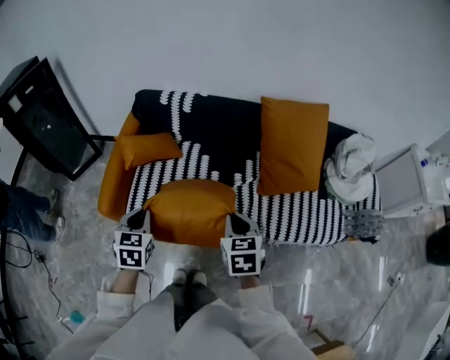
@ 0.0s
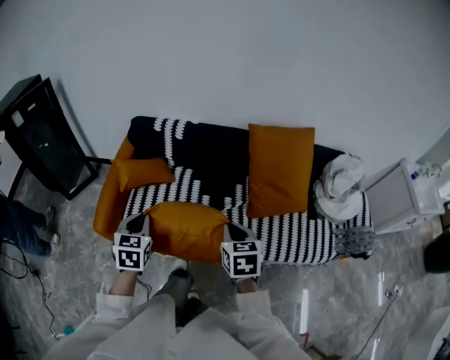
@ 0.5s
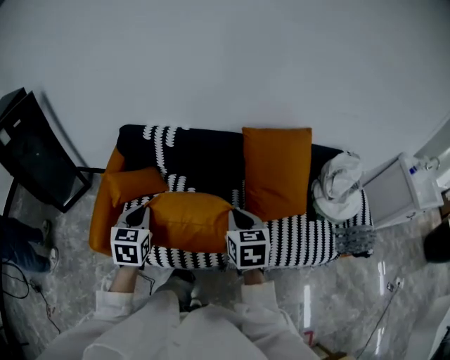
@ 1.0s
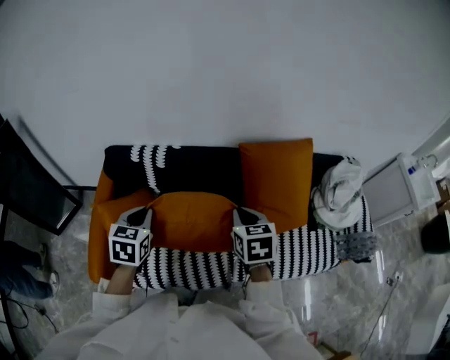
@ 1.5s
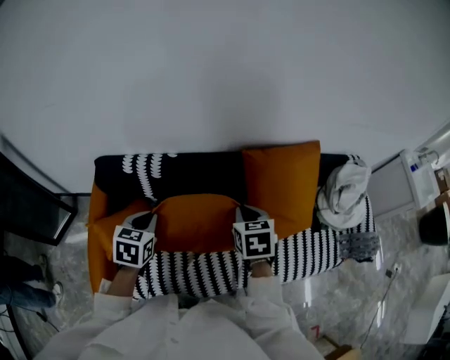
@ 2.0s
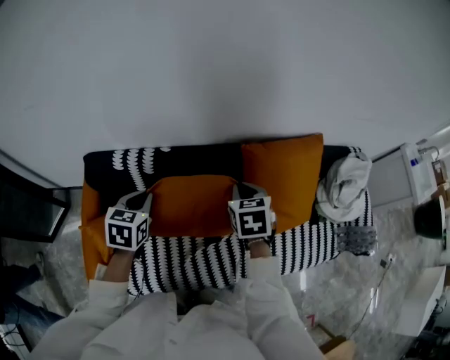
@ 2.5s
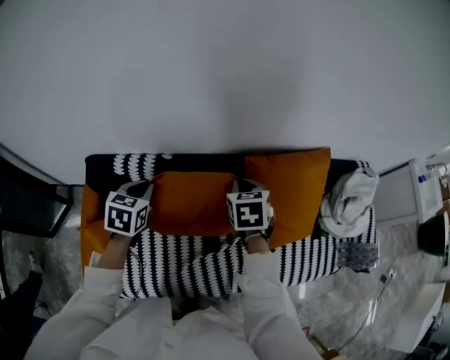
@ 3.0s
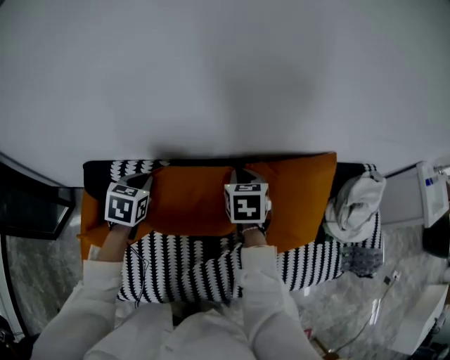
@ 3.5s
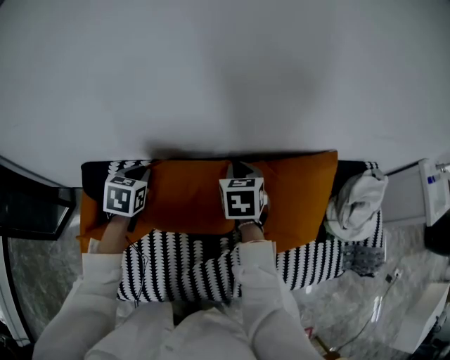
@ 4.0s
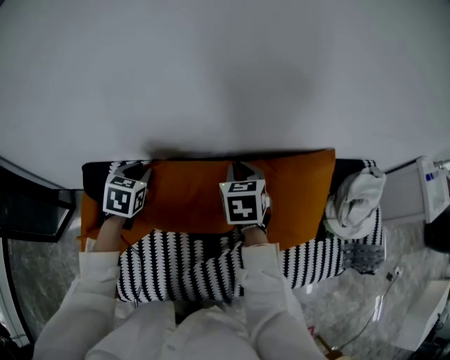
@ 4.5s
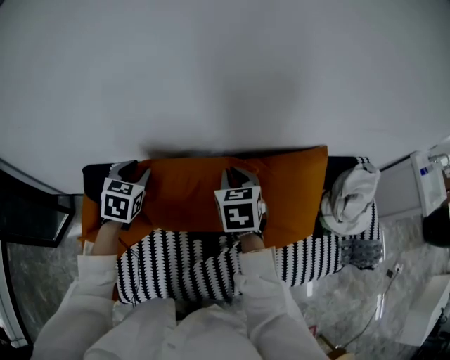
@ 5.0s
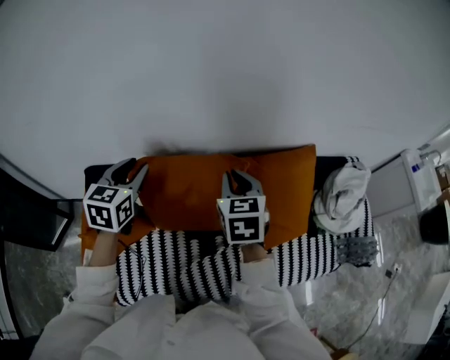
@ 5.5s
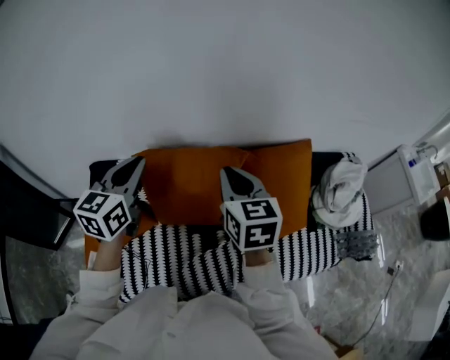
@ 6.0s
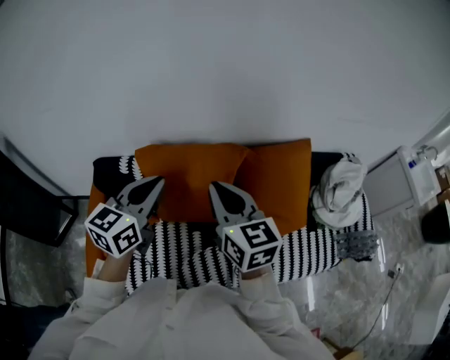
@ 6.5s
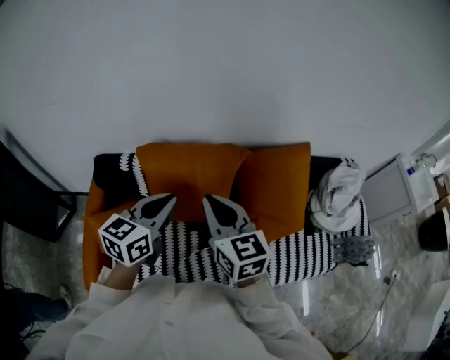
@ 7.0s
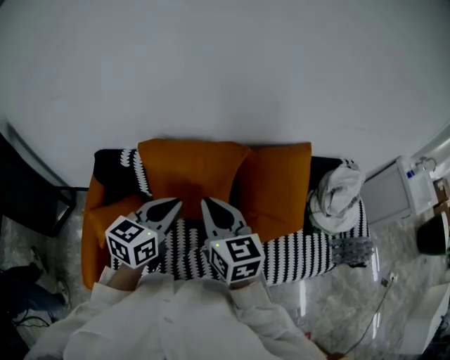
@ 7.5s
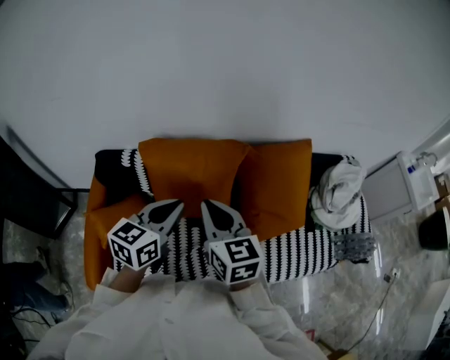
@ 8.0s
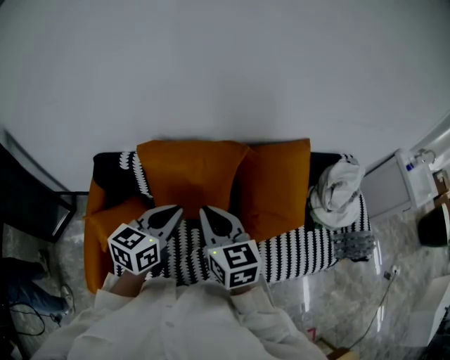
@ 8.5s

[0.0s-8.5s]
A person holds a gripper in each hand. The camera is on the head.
0.0s to 2.0s: The grippers both shift forward by roughly 35 cm. The left gripper rotates some 20 degrees.
2.0s to 4.0s: Both grippers travel together forward, about 25 cm.
4.0s to 6.5s: The right gripper shifts roughly 30 cm backward and upward, and tilts its fingers approximately 30 degrees upward; the left gripper heads backward, upward and to the right, covering about 30 cm, tilts its fingers roughly 40 degrees upward, and opens, then closes once more.
6.5s to 8.5s: The right gripper is displaced backward and downward by roughly 10 cm. Meanwhile the left gripper goes some 10 cm downward and backward.

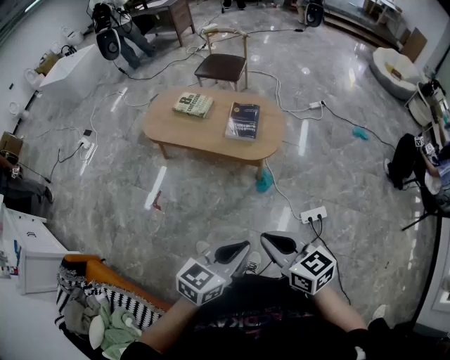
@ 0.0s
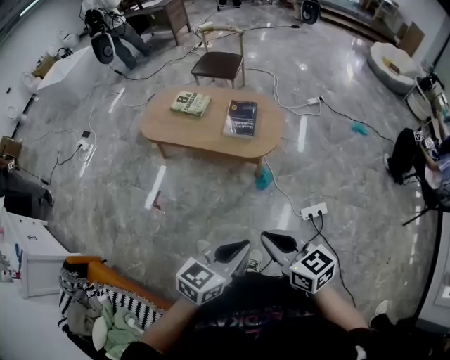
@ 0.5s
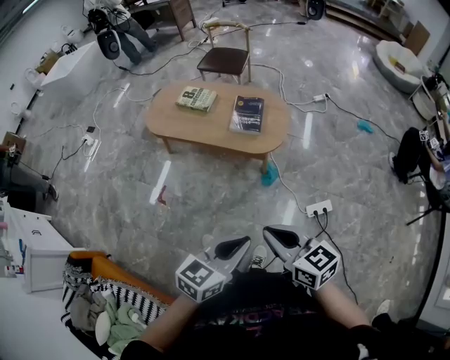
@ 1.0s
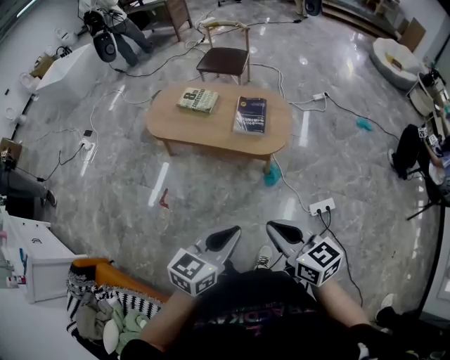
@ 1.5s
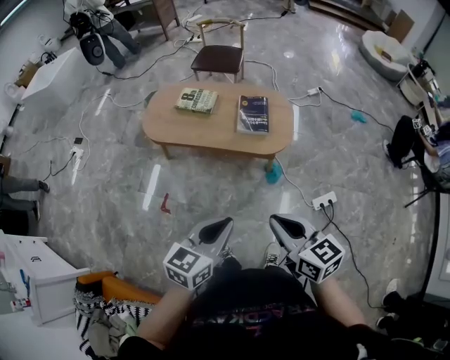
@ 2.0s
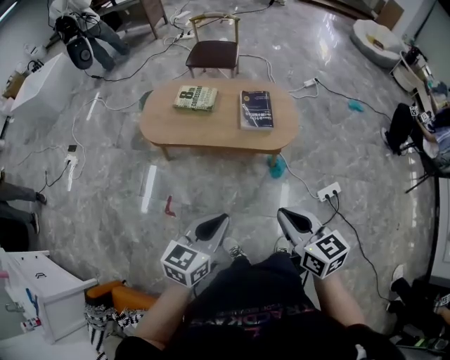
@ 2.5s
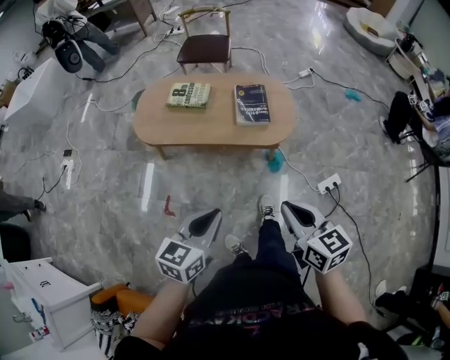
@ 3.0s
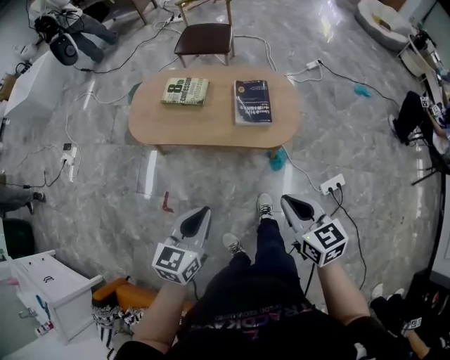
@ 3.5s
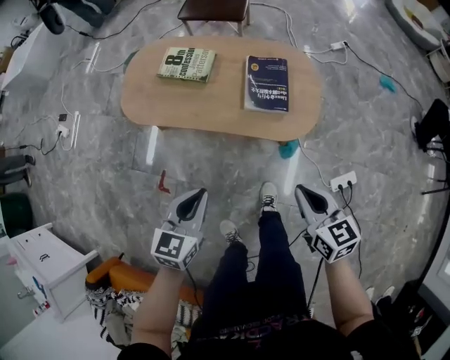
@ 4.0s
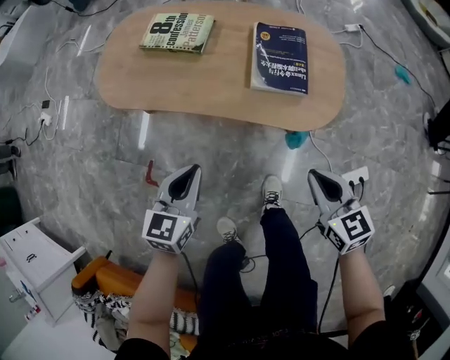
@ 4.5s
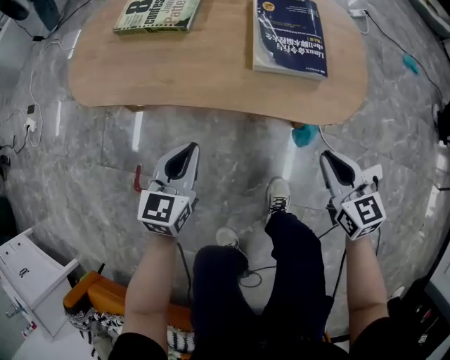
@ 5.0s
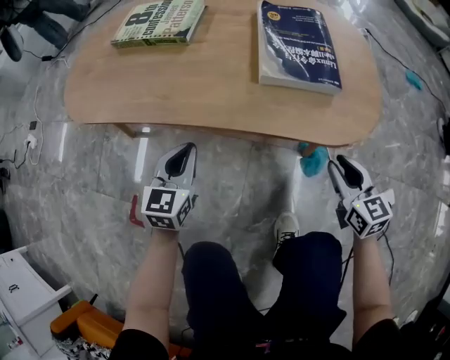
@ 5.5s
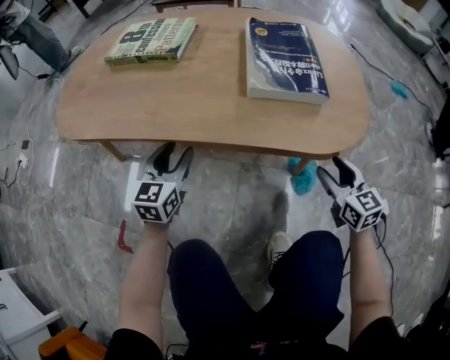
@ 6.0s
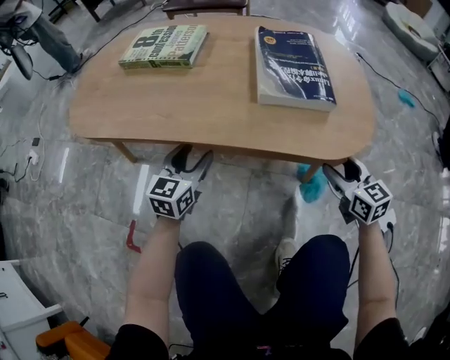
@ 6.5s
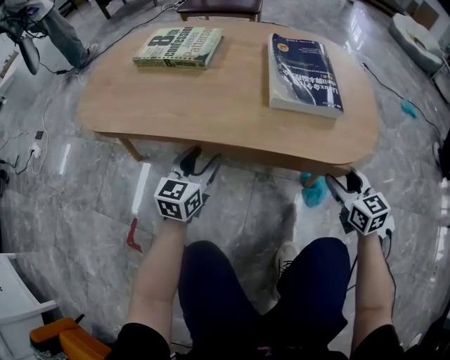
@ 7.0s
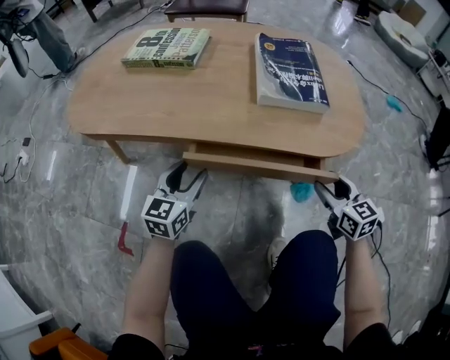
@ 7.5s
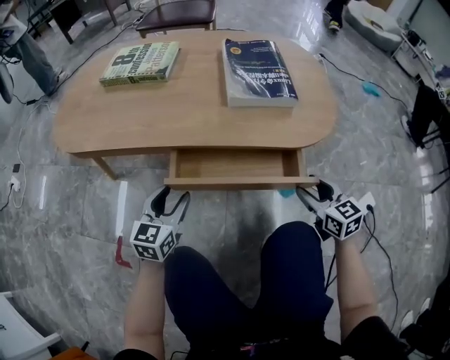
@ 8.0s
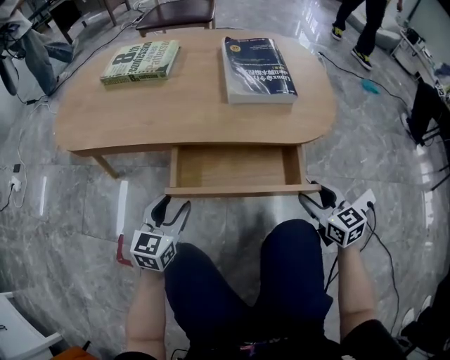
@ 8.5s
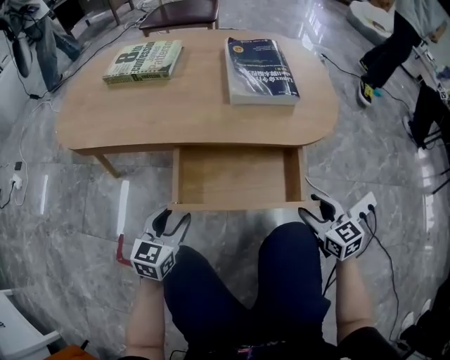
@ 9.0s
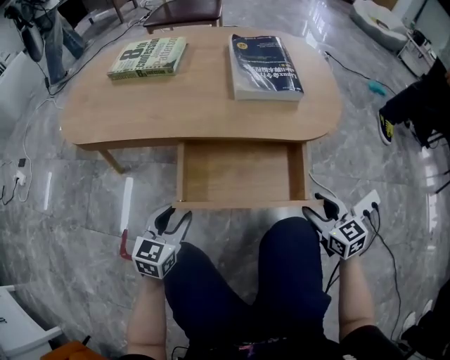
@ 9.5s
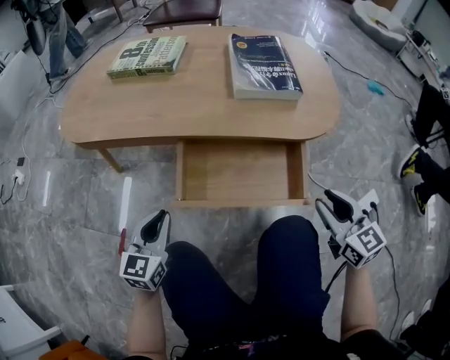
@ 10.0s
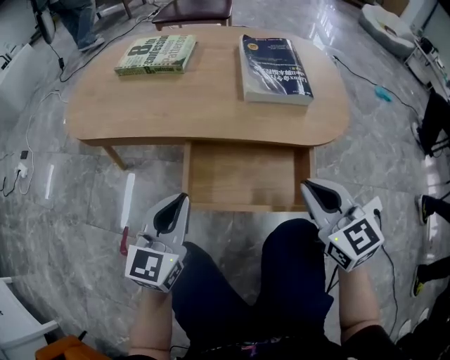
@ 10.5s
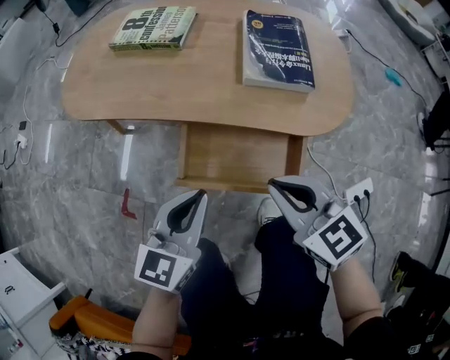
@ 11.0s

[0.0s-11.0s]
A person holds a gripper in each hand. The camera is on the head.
0.0s to 2.0s: Both grippers move to the left and forward, approximately 20 cm.
2.0s to 3.5s: The right gripper heads forward and downward, covering approximately 15 cm; the left gripper shifts about 20 cm forward, to the left and downward.
3.5s to 5.5s: The left gripper heads downward and forward, covering some 60 cm. The right gripper is displaced downward by approximately 50 cm, and opens its fingers.
5.5s to 7.5s: The right gripper opens, while the left gripper opens its fingers.
7.5s to 9.0s: The grippers both shift backward by about 10 cm.
9.0s to 11.0s: The right gripper shifts approximately 25 cm upward and to the left, turns by about 20 degrees, and closes up; the left gripper moves upward, about 20 cm, and closes.

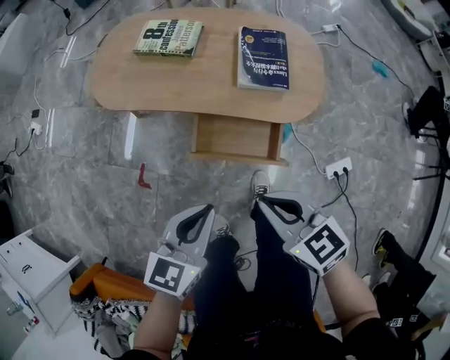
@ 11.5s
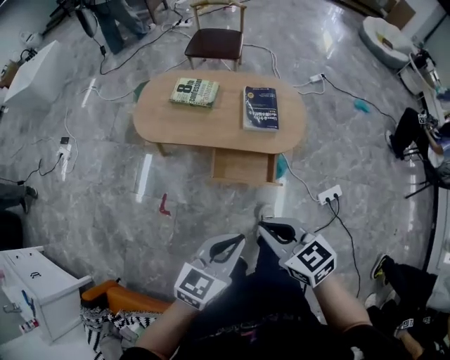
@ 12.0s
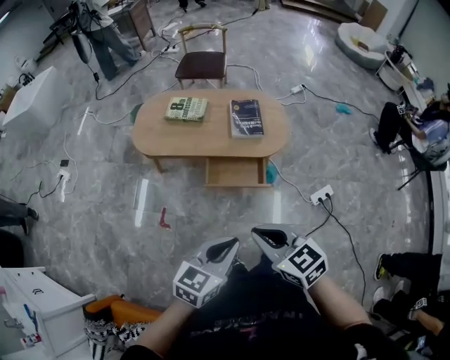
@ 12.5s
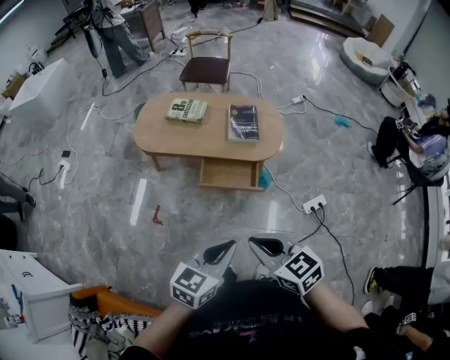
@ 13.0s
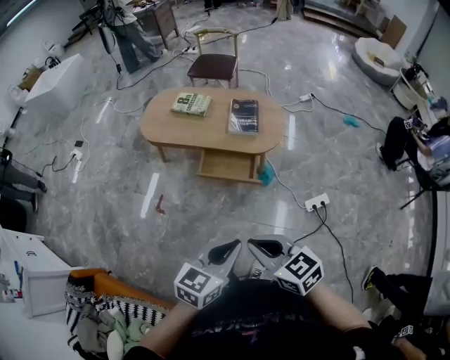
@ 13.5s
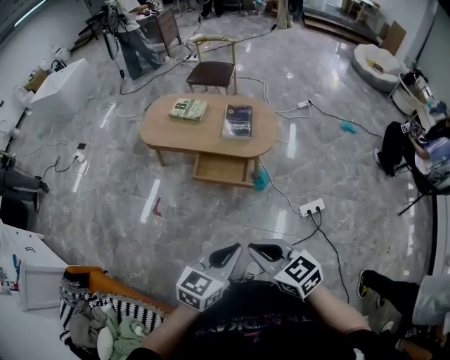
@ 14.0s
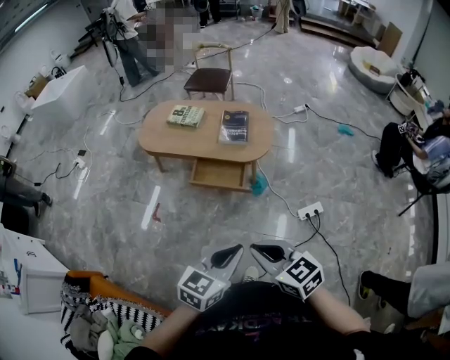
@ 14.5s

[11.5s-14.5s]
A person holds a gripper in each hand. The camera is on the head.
11.5s to 13.0s: Both grippers travel together backward and upward, some 35 cm.
13.0s to 14.5s: The grippers both shift to the right and backward by roughly 20 cm.

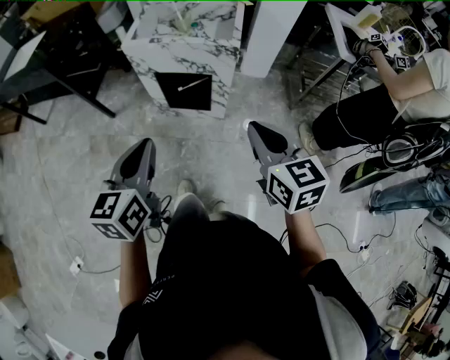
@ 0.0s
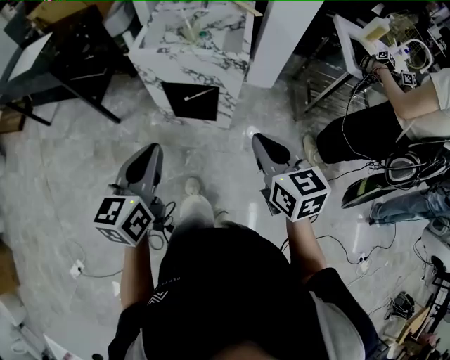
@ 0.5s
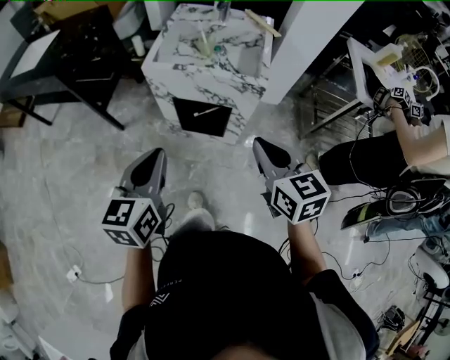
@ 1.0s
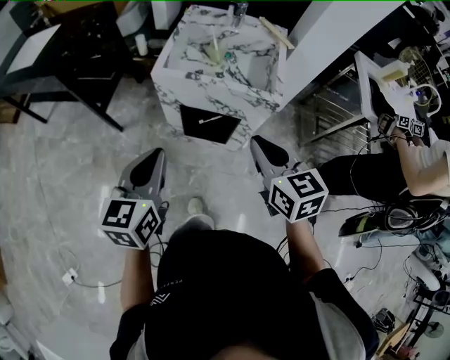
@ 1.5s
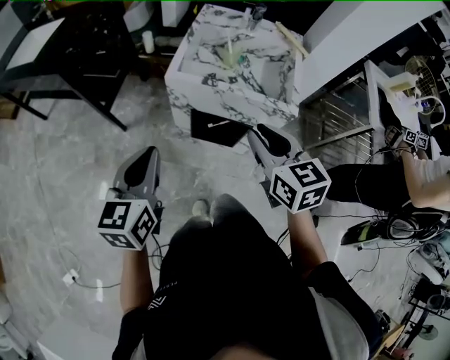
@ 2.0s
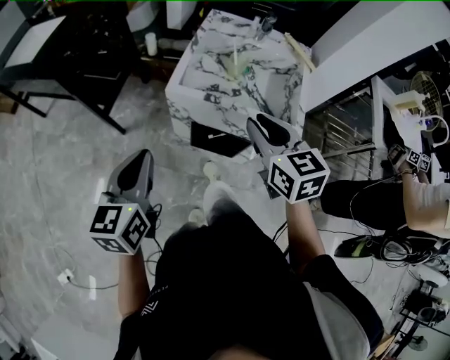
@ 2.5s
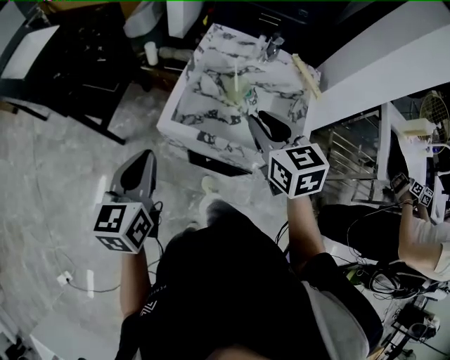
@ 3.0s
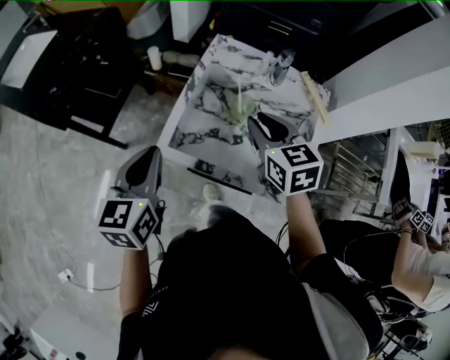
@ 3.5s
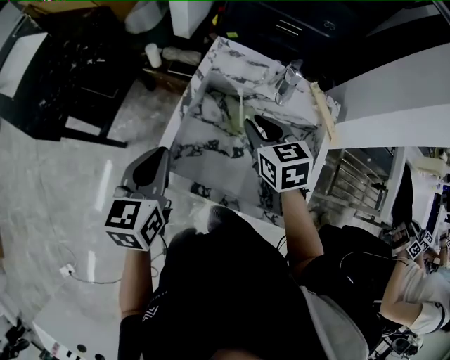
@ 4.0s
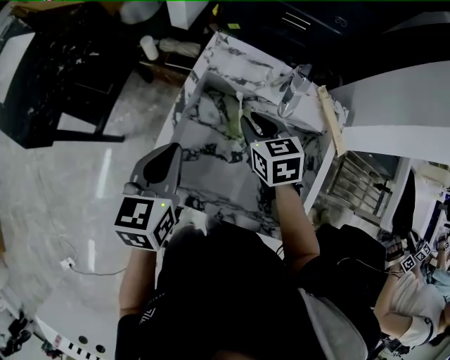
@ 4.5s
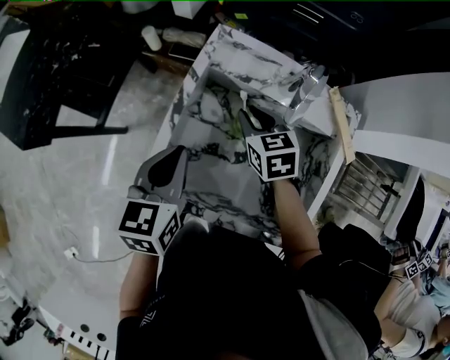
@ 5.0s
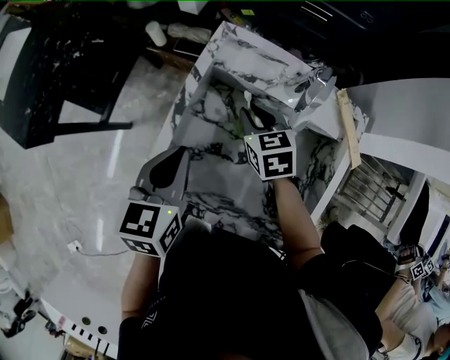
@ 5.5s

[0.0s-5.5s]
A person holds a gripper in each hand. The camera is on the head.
0.0s to 2.0s: The two grippers go approximately 25 cm forward and to the left. The right gripper opens its fingers.
2.0s to 3.5s: Both grippers travel together forward, approximately 30 cm.
3.5s to 5.5s: The left gripper is displaced forward, to the right and downward by some 15 cm, while the right gripper shifts roughly 20 cm downward and forward.
